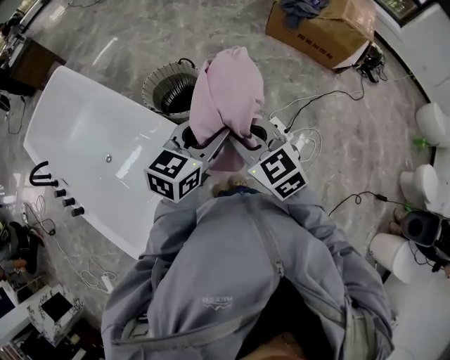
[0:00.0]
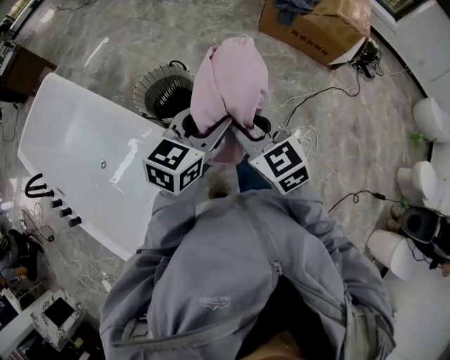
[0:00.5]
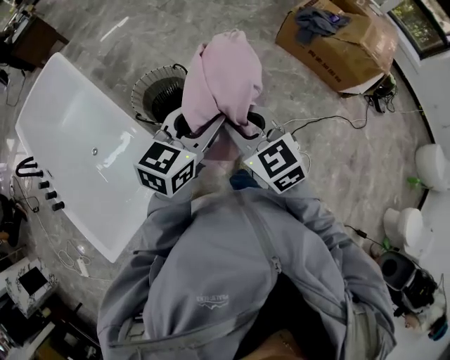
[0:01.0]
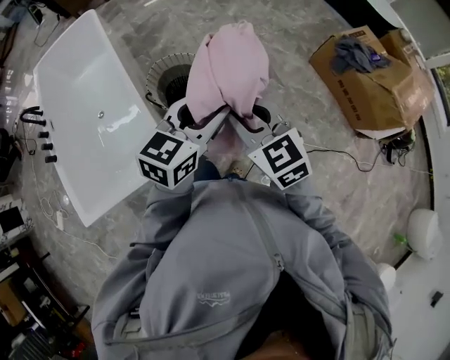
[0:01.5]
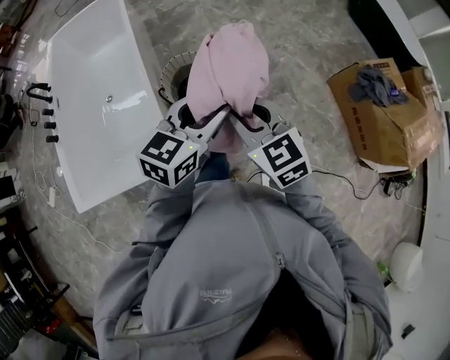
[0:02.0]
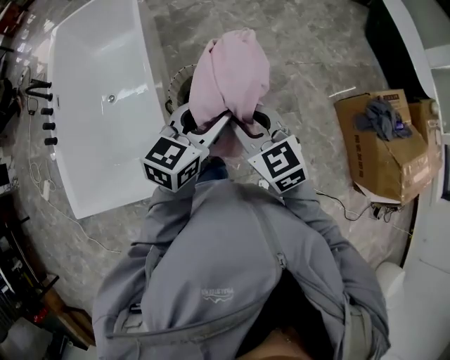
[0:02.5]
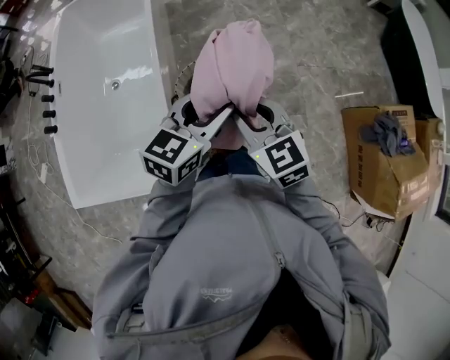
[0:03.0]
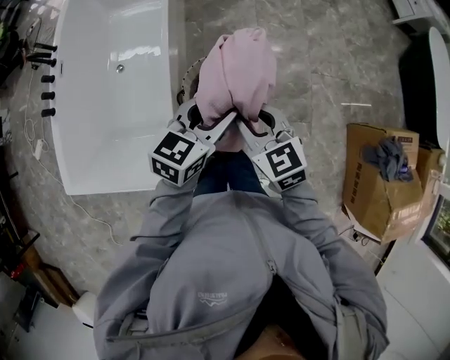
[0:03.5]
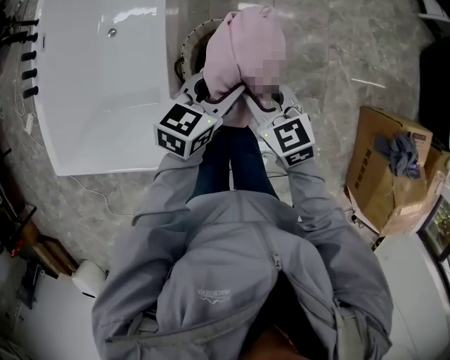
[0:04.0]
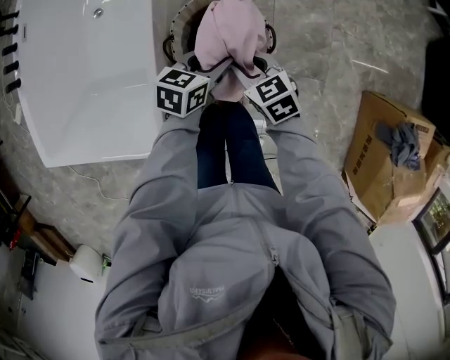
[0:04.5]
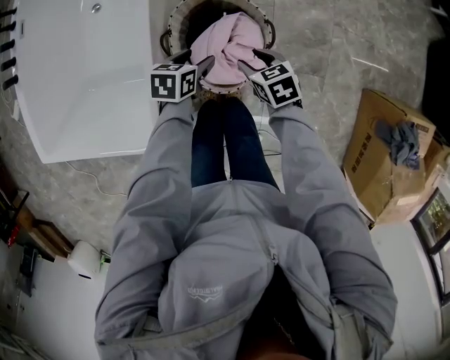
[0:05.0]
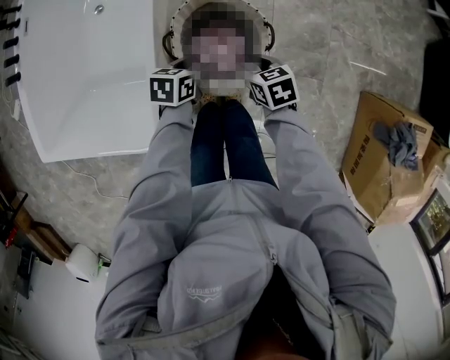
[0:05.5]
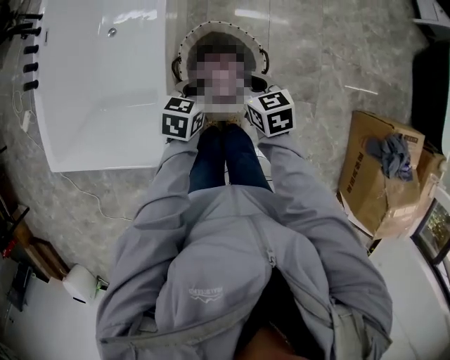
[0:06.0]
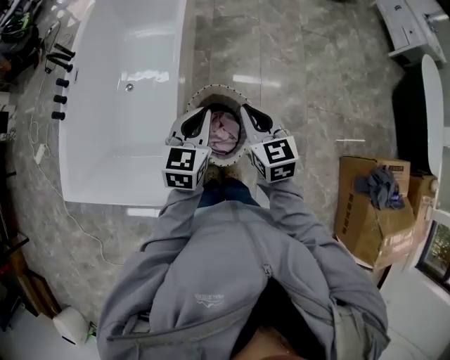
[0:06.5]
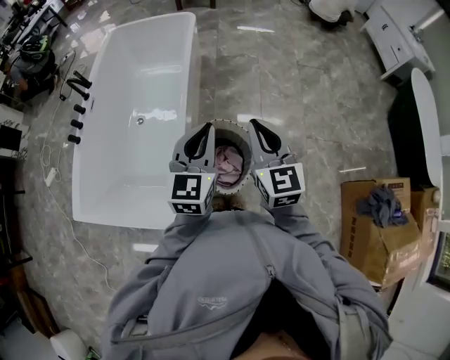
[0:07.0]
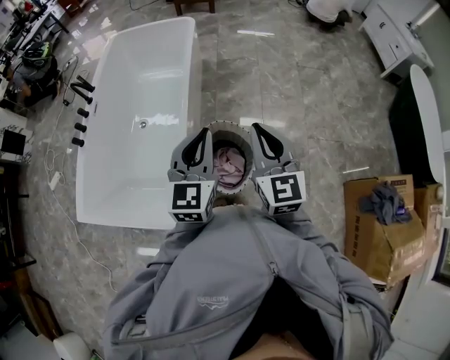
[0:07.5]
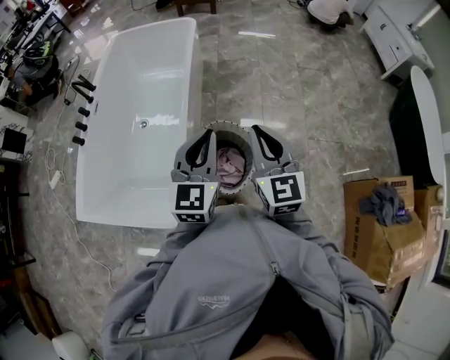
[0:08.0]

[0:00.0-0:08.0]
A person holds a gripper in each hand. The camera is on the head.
0:00.0 to 0:02.0: The right gripper shifts by some 20 cm, and swivels some 30 degrees; the left gripper shifts by roughly 20 cm, and changes its angle by roughly 40 degrees.
0:02.0 to 0:04.0: The grippers both shift forward and downward by some 25 cm. The left gripper swivels roughly 20 degrees; the right gripper rotates roughly 20 degrees.
0:04.0 to 0:06.0: The left gripper moves downward and to the left, roughly 10 cm, and closes. Meanwhile the right gripper heads downward, covering roughly 5 cm.
0:06.0 to 0:08.0: The two grippers go approximately 30 cm upward. The left gripper points its fingers about 40 degrees further upward. Meanwhile the right gripper tips its fingers upward by about 40 degrees.

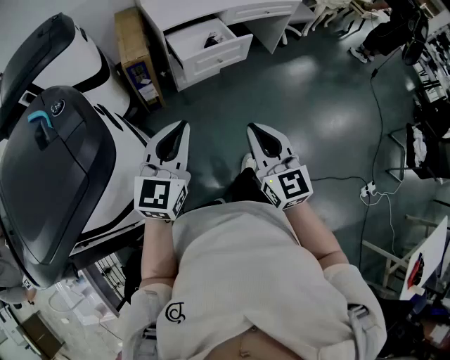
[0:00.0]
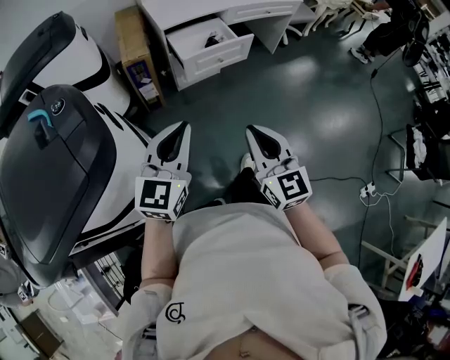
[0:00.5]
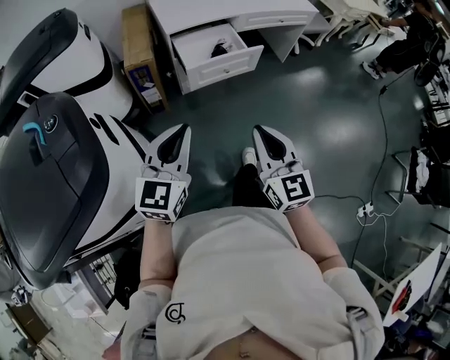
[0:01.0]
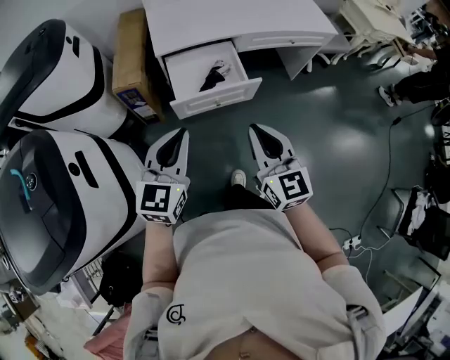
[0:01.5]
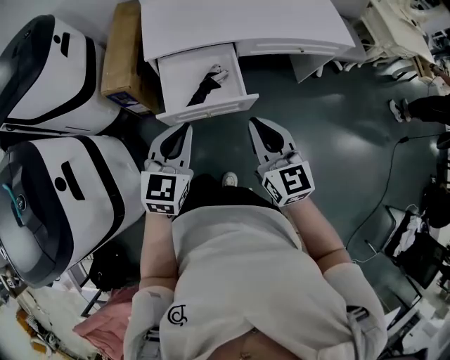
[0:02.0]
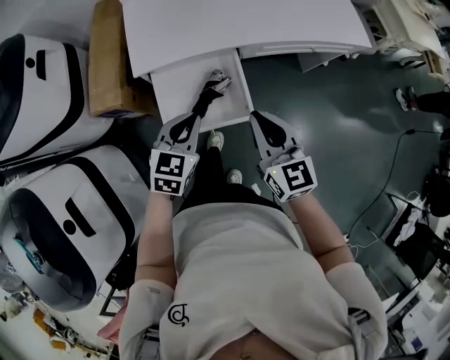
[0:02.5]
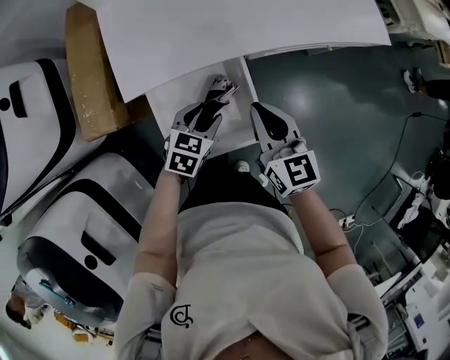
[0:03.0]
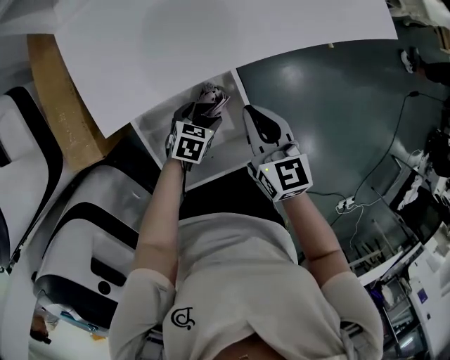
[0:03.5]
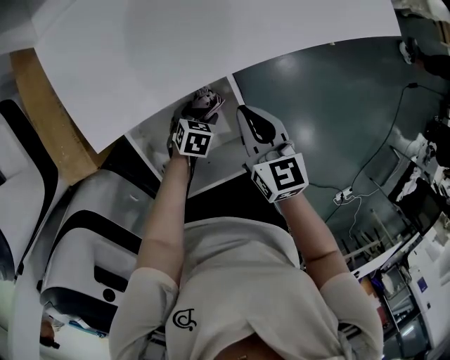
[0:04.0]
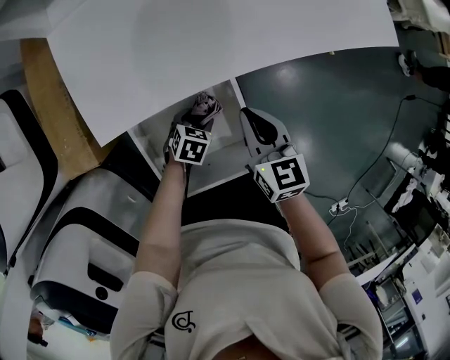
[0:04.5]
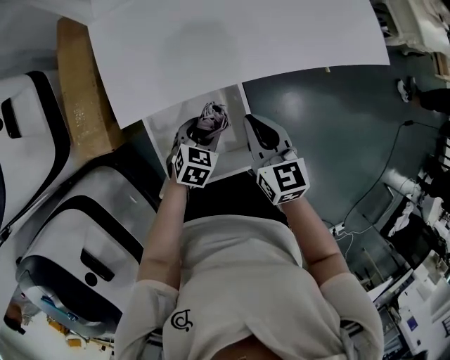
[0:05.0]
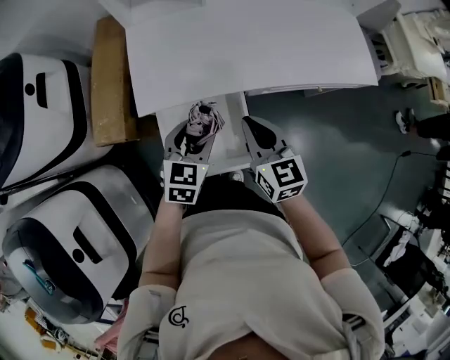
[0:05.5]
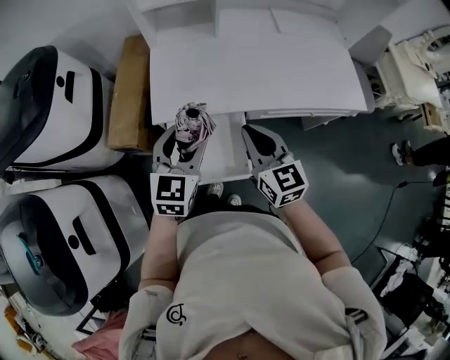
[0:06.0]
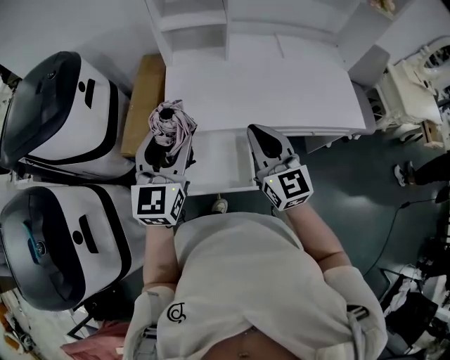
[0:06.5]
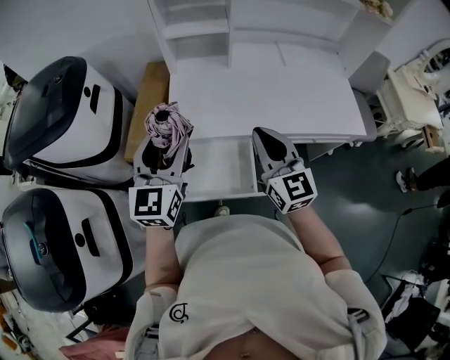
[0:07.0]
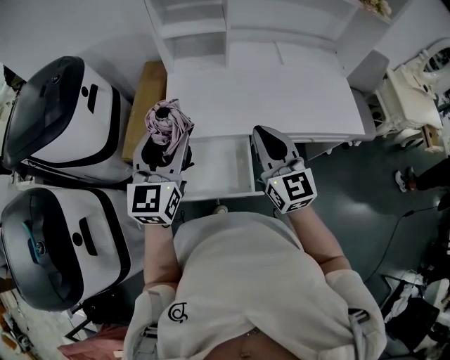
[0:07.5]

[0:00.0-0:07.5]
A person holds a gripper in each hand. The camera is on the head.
0:00.0 to 0:02.0: The right gripper travels forward by about 40 cm, while the left gripper goes approximately 40 cm forward and to the right, and turns by some 20 degrees.
0:02.0 to 0:04.0: The left gripper goes about 40 cm downward, angles its fingers downward, by about 40 degrees, and opens up; the right gripper changes place by some 35 cm, and turns by some 30 degrees.
0:04.0 to 0:05.5: The left gripper goes about 30 cm upward, and tilts its fingers roughly 30 degrees upward; the right gripper moves upward, roughly 15 cm, and swivels some 20 degrees.
0:05.5 to 0:07.5: Both grippers travel together upward, approximately 20 cm. The left gripper tilts its fingers some 30 degrees upward; the right gripper changes its angle by some 30 degrees.

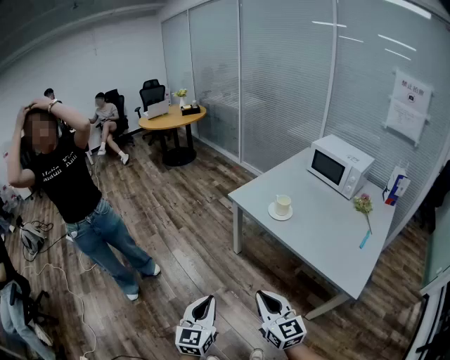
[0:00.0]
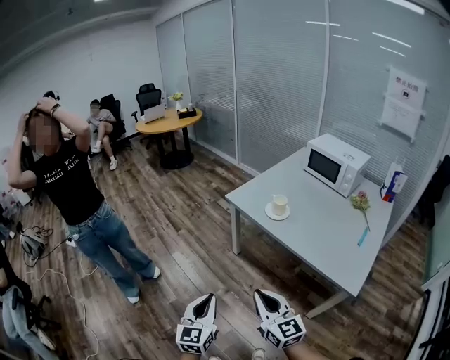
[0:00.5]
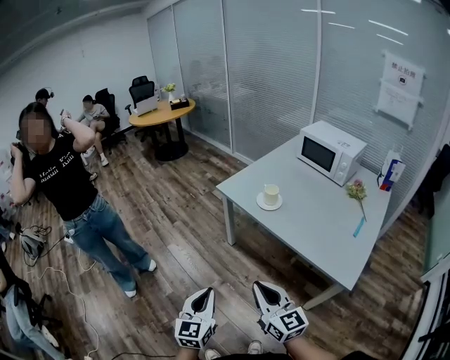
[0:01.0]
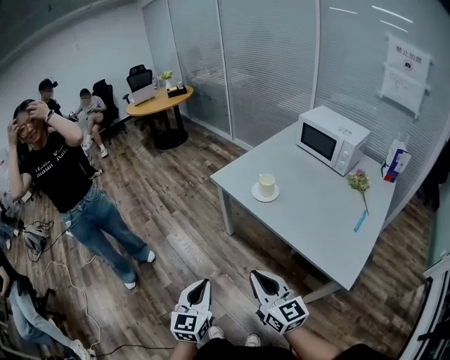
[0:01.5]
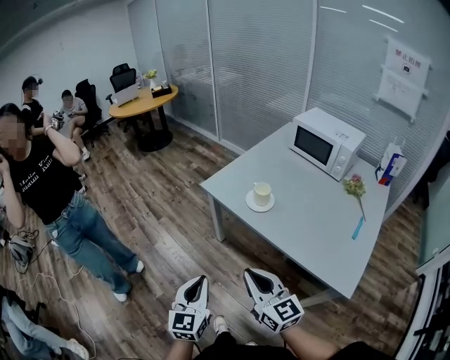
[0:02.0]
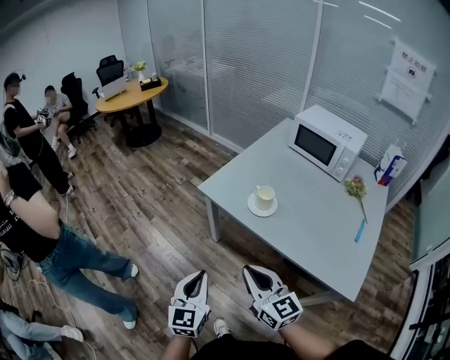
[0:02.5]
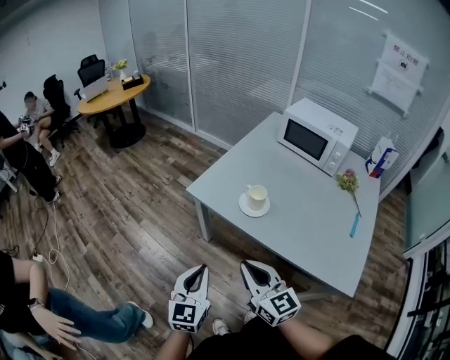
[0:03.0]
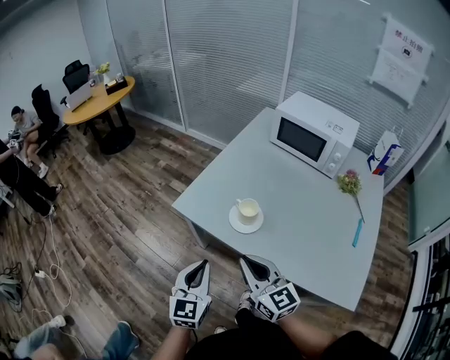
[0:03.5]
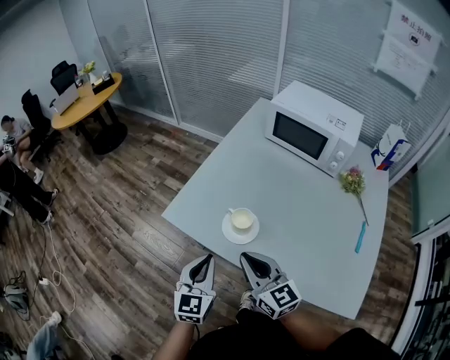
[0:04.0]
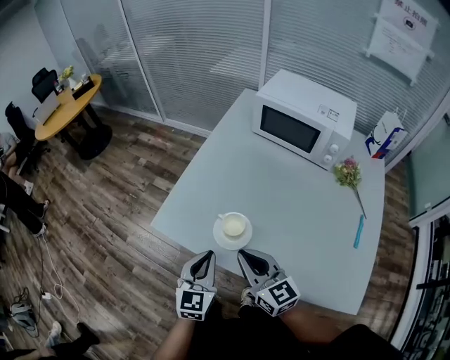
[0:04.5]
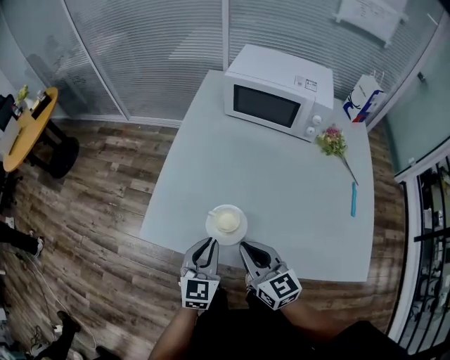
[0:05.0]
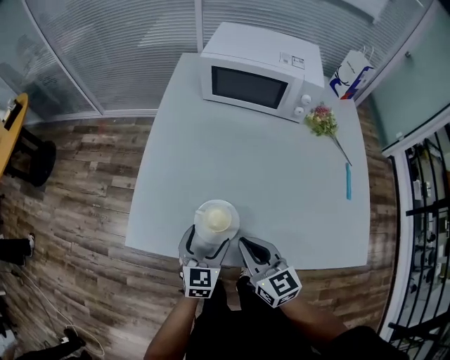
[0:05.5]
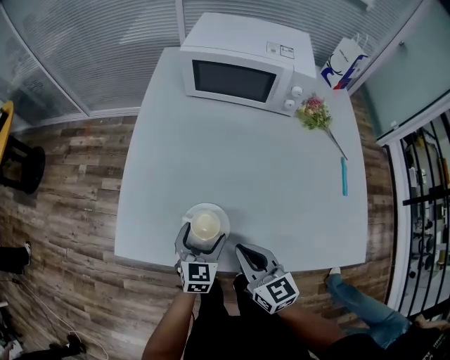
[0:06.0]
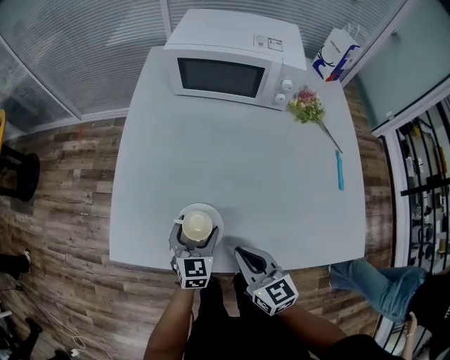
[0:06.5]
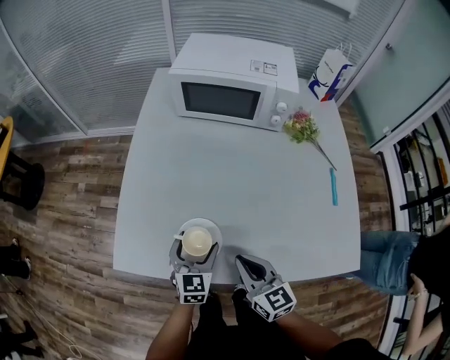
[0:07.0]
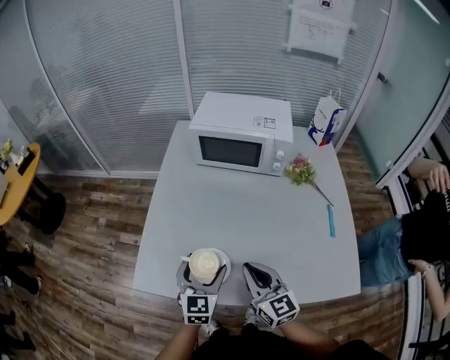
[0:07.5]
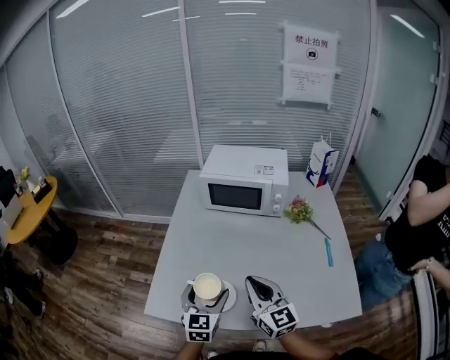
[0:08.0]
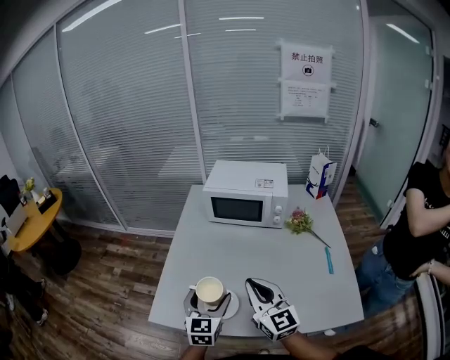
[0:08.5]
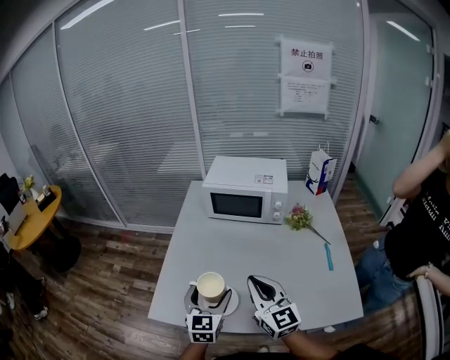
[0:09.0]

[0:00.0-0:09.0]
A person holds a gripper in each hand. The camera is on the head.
0:00.0 to 0:02.0: The grippers both shift forward and to the right by some 15 cm.
0:02.0 to 0:04.5: The grippers both shift forward by about 35 cm. The left gripper rotates roughly 20 degrees.
0:04.5 to 0:07.0: The right gripper shifts approximately 10 cm downward and to the right, and turns by approximately 30 degrees. Meanwhile the left gripper goes some 20 cm downward, forward and to the right, and opens up.
0:07.0 to 0:09.0: Both grippers move upward, roughly 20 cm. The right gripper swivels approximately 30 degrees.

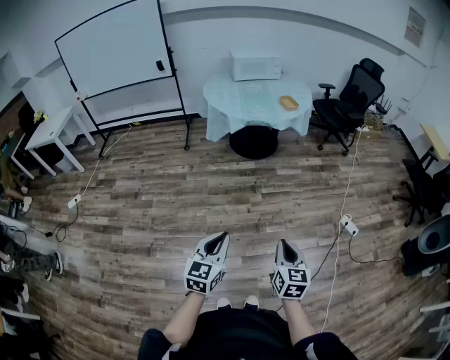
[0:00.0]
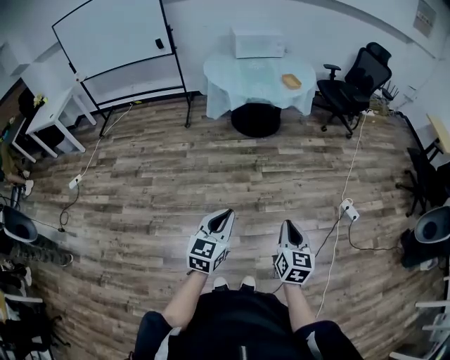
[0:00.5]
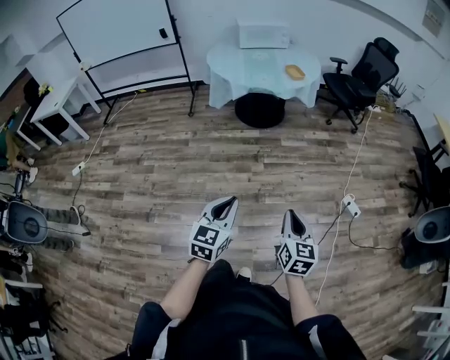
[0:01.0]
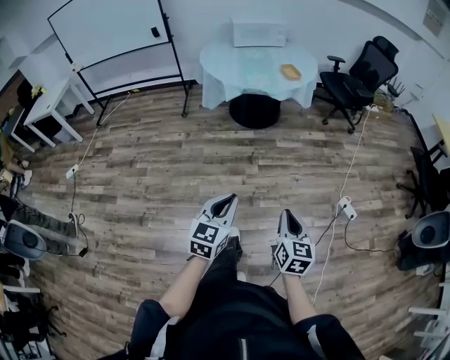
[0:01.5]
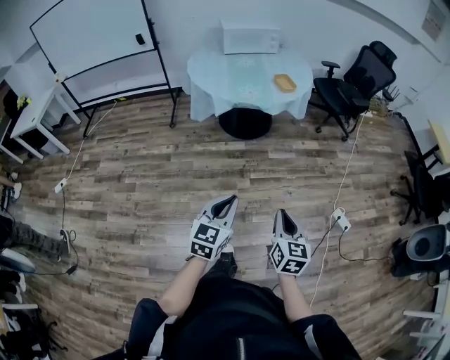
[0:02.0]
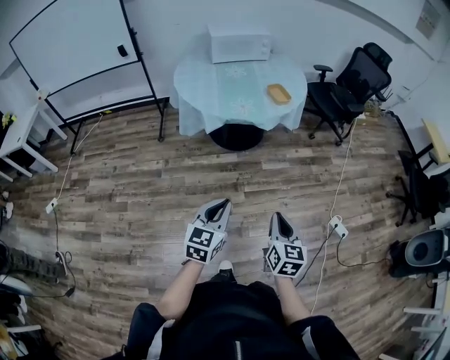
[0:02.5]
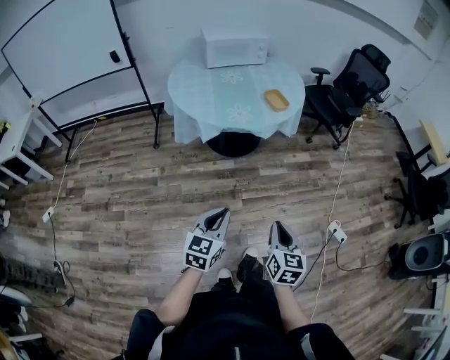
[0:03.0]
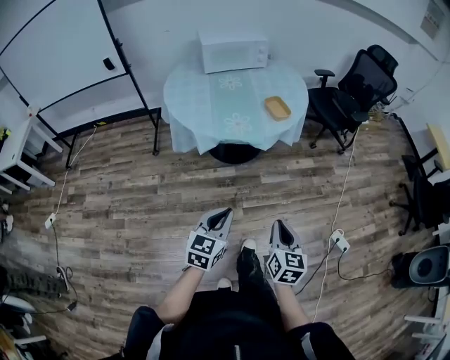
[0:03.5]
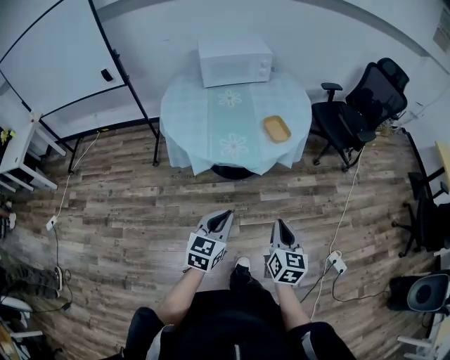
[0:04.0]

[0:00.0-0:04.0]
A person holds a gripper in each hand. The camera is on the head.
0:00.0 to 0:02.0: The two grippers go about 25 cm forward.
0:02.0 to 0:04.0: Both grippers move forward, roughly 40 cm.
